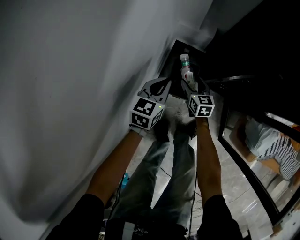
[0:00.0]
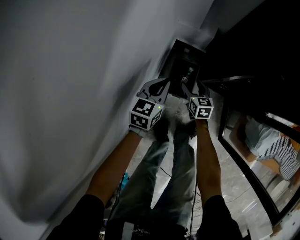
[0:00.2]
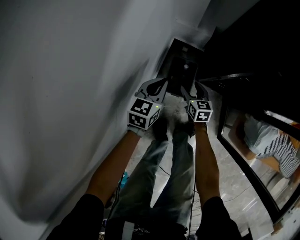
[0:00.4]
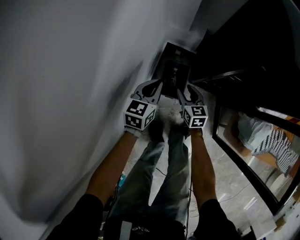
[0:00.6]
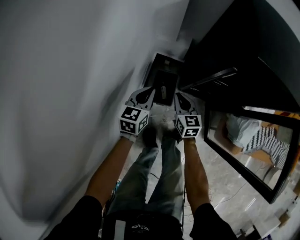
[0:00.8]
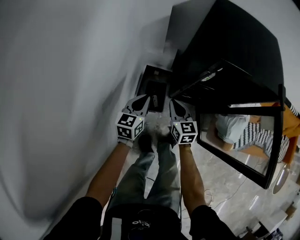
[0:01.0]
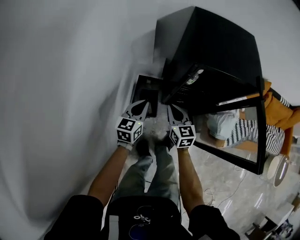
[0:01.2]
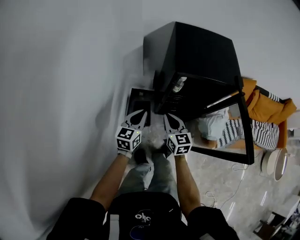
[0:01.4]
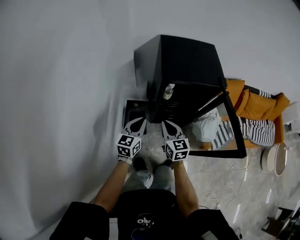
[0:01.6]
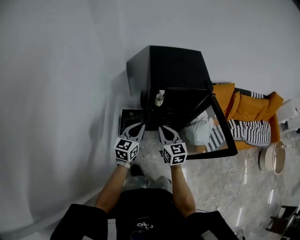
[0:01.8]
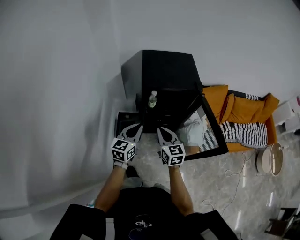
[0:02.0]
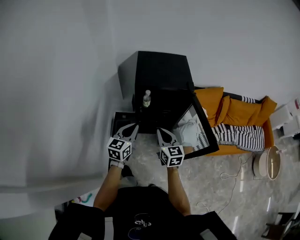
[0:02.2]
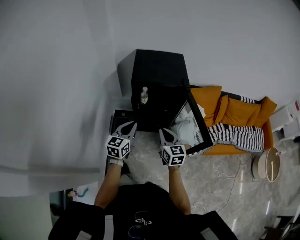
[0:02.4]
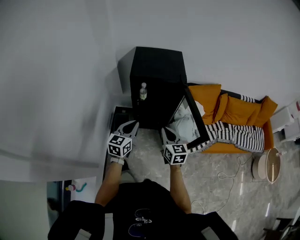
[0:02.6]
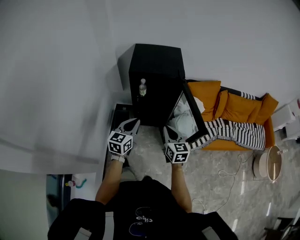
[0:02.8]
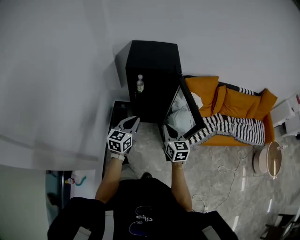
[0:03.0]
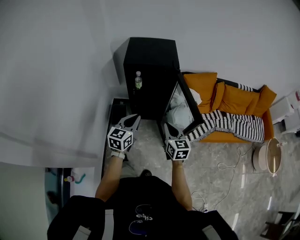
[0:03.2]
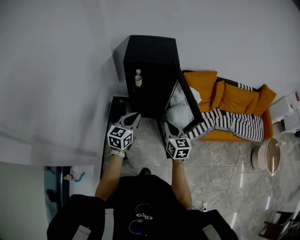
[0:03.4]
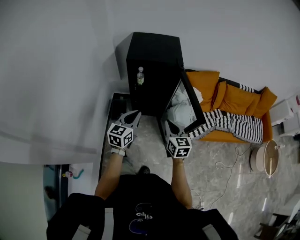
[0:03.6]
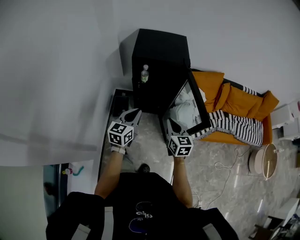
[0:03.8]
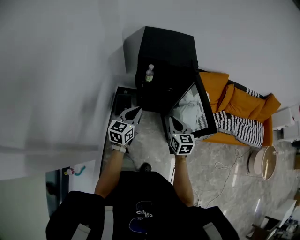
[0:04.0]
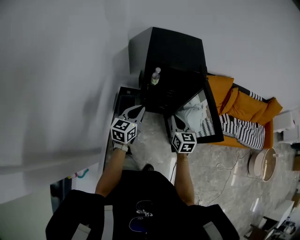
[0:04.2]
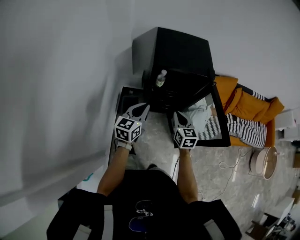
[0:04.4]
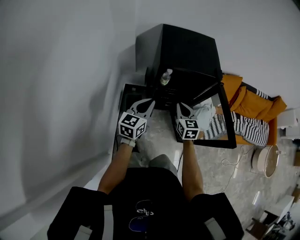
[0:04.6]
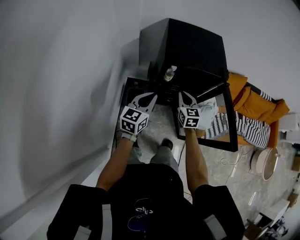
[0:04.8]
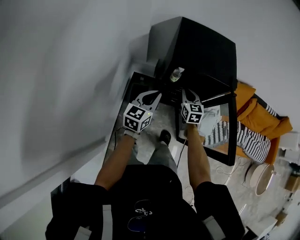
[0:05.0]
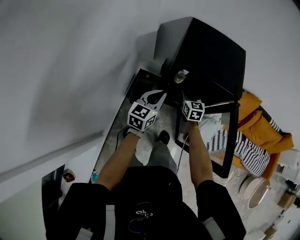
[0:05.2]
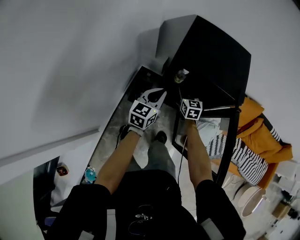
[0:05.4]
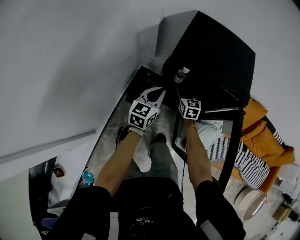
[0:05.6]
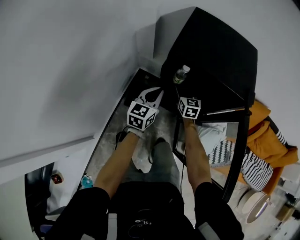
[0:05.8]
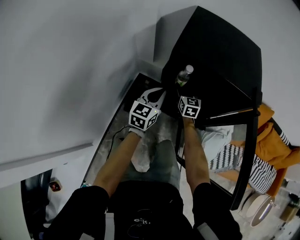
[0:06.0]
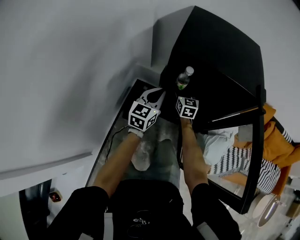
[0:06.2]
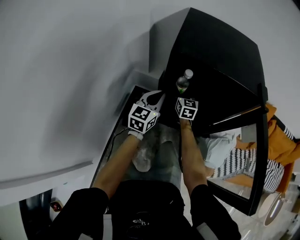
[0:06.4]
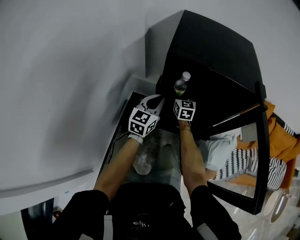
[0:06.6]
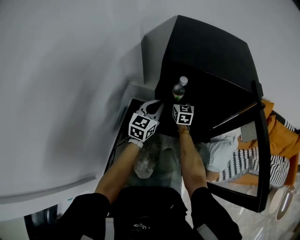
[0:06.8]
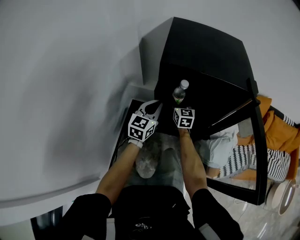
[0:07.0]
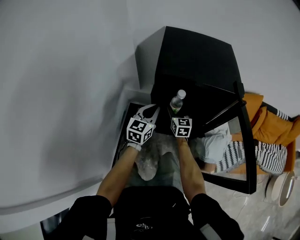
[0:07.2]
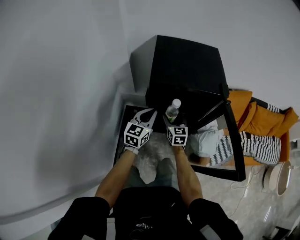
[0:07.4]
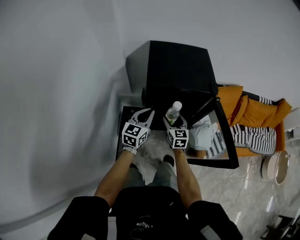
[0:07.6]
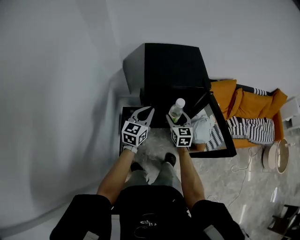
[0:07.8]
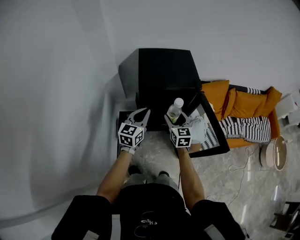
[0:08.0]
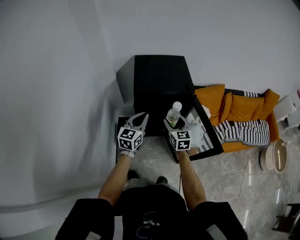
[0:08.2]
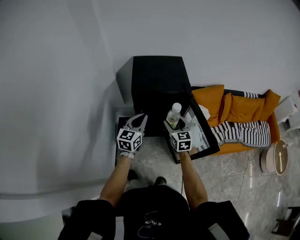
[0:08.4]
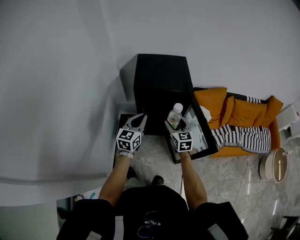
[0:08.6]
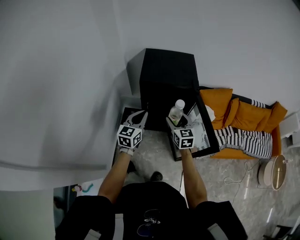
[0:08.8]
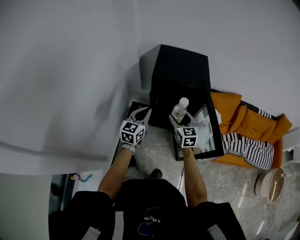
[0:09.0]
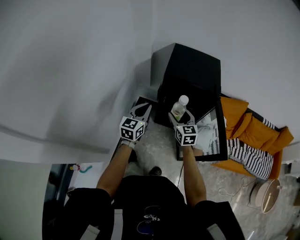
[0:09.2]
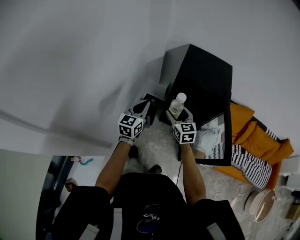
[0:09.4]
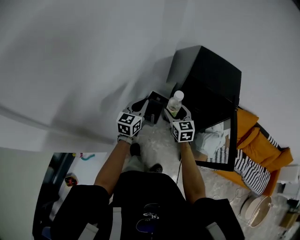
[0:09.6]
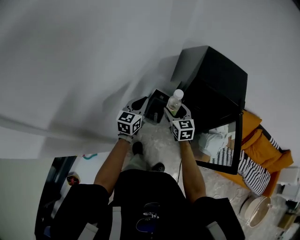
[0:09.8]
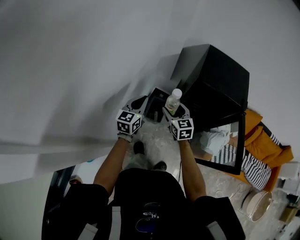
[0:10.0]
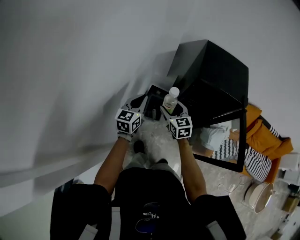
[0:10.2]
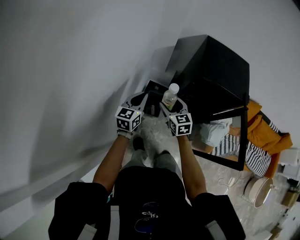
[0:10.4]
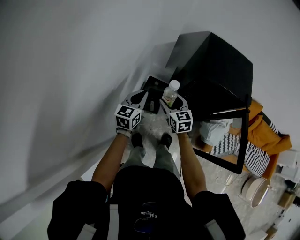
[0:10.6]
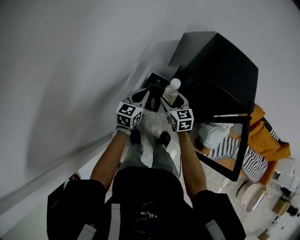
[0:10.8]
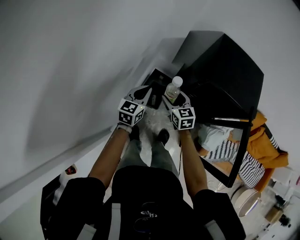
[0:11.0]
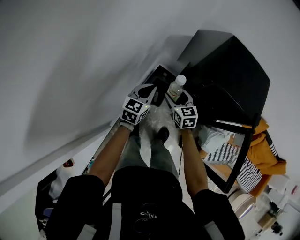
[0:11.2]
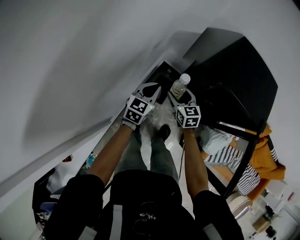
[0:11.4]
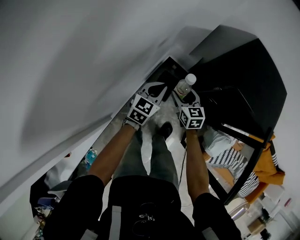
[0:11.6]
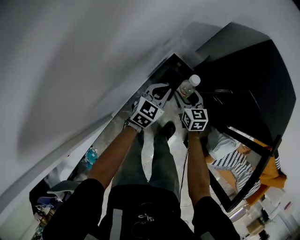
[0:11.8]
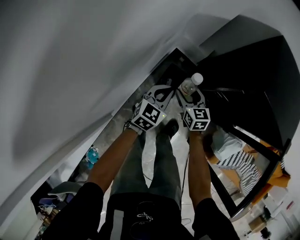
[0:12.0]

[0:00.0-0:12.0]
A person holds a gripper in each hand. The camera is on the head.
0:00.0 to 0:01.6: The right gripper is displaced upward by about 40 cm, changes its angle by roughly 20 degrees, and closes its fingers. Meanwhile the left gripper shifts about 35 cm upward and to the right.
0:01.6 to 0:03.0: The right gripper moves to the right and backward, approximately 30 cm; the left gripper moves to the right, backward and upward, approximately 30 cm.
0:03.0 to 0:04.4: The right gripper moves forward and to the left, approximately 20 cm. The left gripper goes roughly 20 cm to the left and forward.
0:04.4 to 0:06.0: The left gripper goes approximately 25 cm downward and forward. Meanwhile the right gripper shifts some 40 cm forward and downward, and opens up.
0:06.0 to 0:07.6: The right gripper moves upward and backward, approximately 20 cm; the left gripper shifts some 15 cm upward.
0:07.6 to 0:09.0: The right gripper travels upward, backward and to the right by about 20 cm. Meanwhile the left gripper goes about 15 cm backward and upward.
0:09.0 to 0:10.4: The grippers both shift to the left by approximately 25 cm.
0:10.4 to 0:12.0: The grippers both shift downward by about 25 cm.

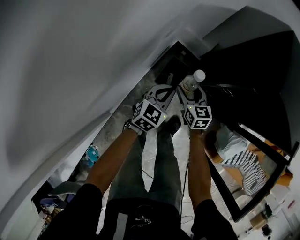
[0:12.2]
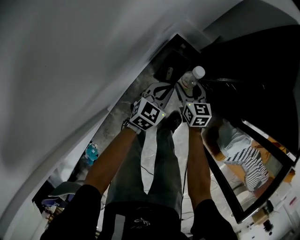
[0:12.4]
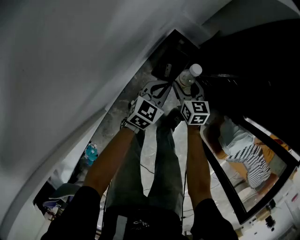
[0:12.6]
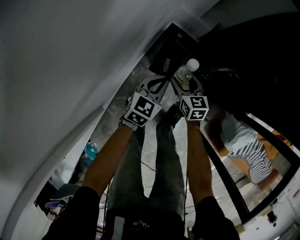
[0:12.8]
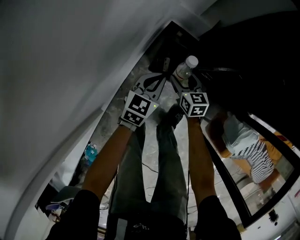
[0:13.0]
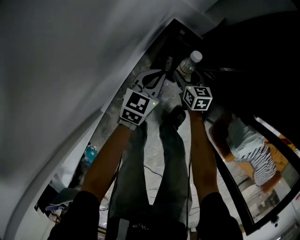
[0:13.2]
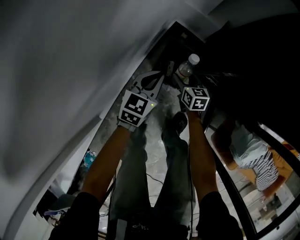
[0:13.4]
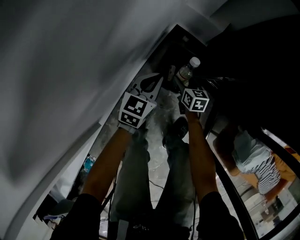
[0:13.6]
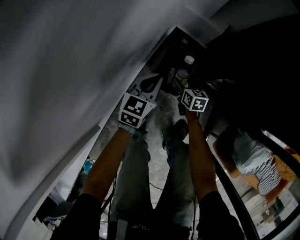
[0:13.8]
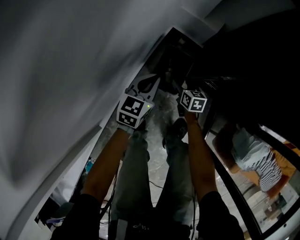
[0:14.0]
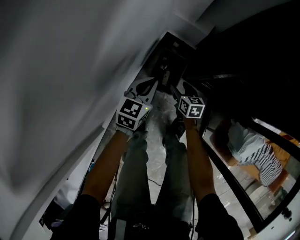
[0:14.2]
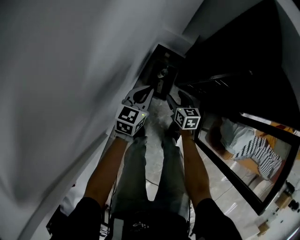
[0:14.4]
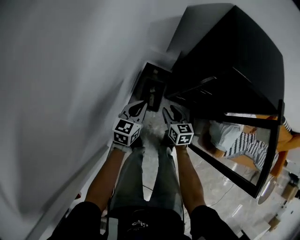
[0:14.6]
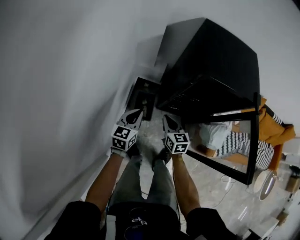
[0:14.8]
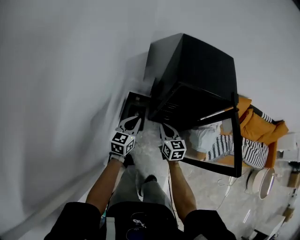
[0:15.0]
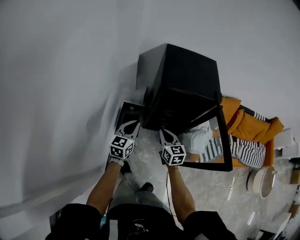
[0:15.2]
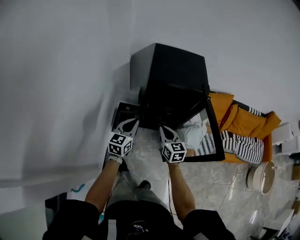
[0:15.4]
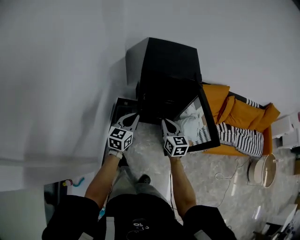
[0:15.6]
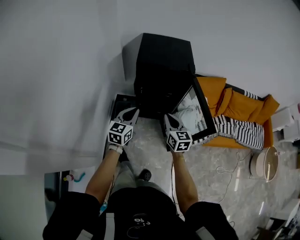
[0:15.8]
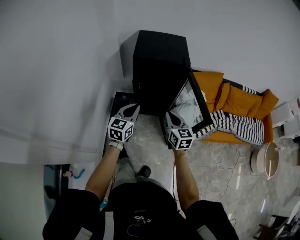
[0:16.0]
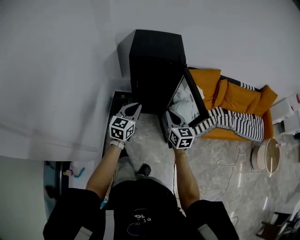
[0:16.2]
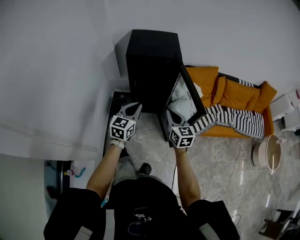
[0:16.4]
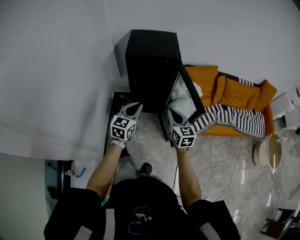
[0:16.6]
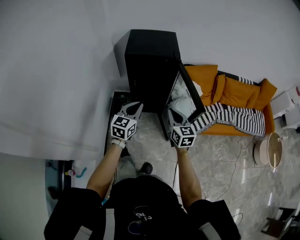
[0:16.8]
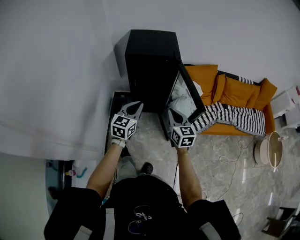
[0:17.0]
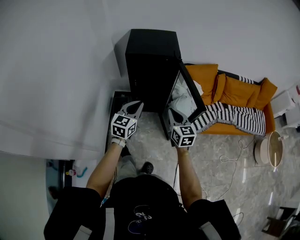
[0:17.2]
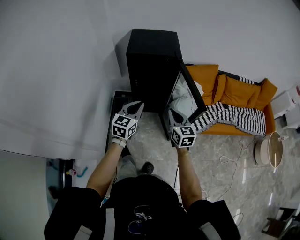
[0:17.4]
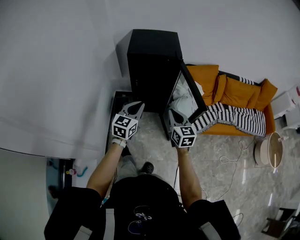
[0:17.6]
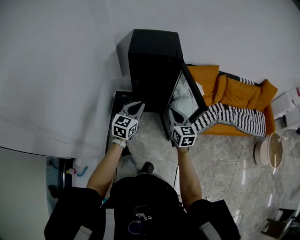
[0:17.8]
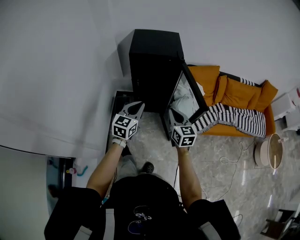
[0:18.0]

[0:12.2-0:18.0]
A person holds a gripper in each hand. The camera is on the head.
0:12.2 to 0:13.6: The right gripper shifts about 30 cm downward; the left gripper is displaced downward by about 20 cm.
0:13.6 to 0:15.0: Both grippers travel together upward, some 50 cm. The right gripper changes its angle by approximately 20 degrees, and closes up.
0:15.0 to 0:16.6: The two grippers go some 35 cm to the right, backward and upward.
0:16.6 to 0:18.0: The grippers stay close to where they were, moving slightly.

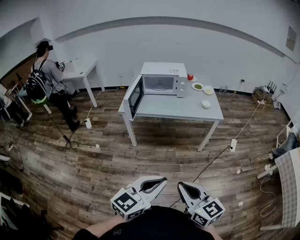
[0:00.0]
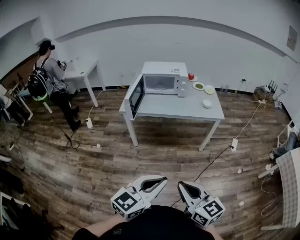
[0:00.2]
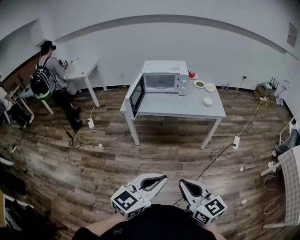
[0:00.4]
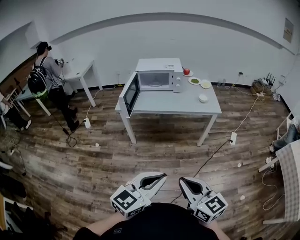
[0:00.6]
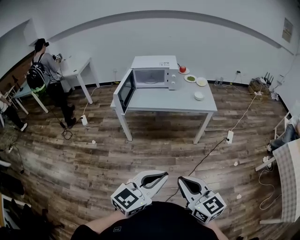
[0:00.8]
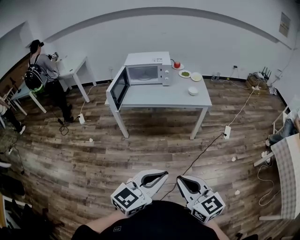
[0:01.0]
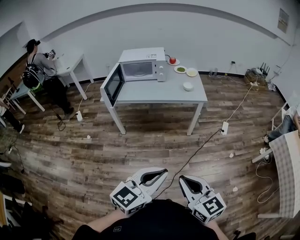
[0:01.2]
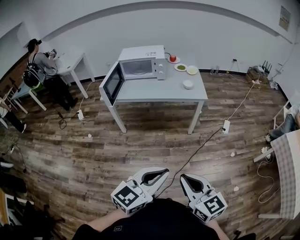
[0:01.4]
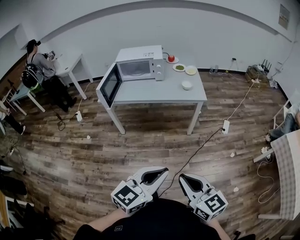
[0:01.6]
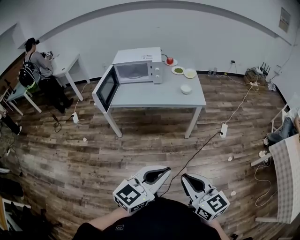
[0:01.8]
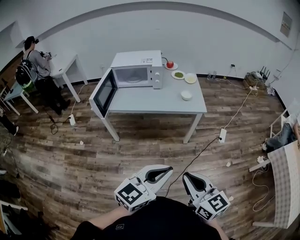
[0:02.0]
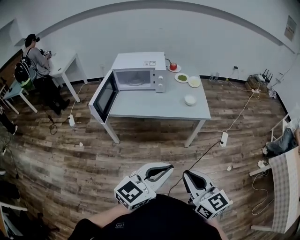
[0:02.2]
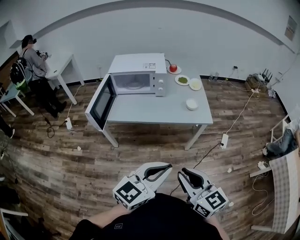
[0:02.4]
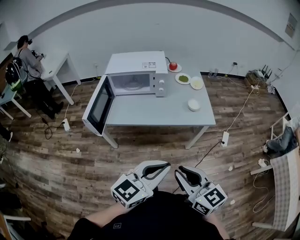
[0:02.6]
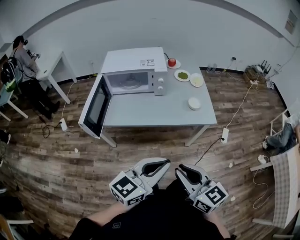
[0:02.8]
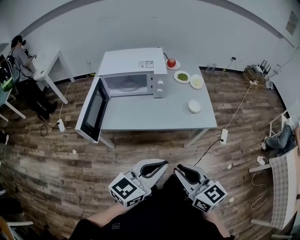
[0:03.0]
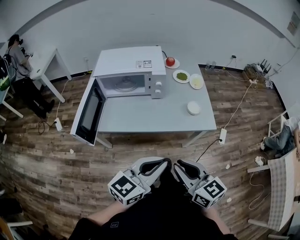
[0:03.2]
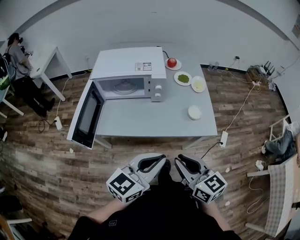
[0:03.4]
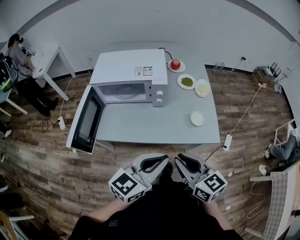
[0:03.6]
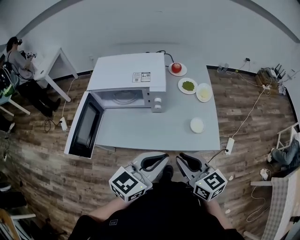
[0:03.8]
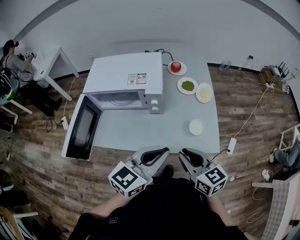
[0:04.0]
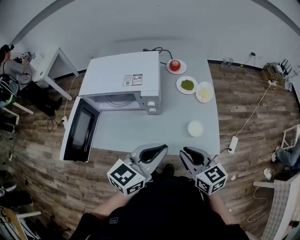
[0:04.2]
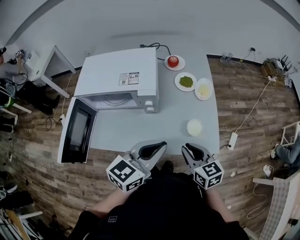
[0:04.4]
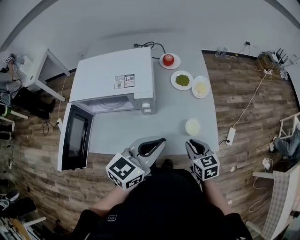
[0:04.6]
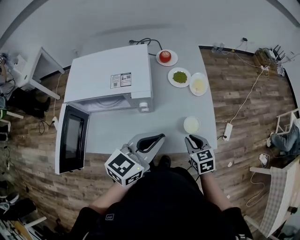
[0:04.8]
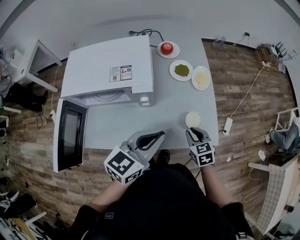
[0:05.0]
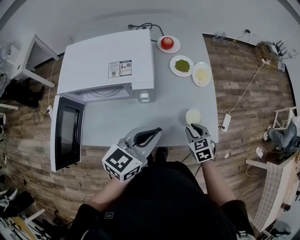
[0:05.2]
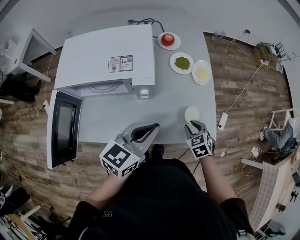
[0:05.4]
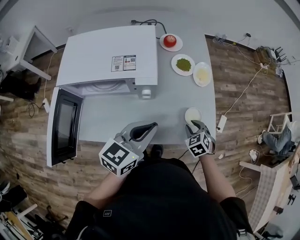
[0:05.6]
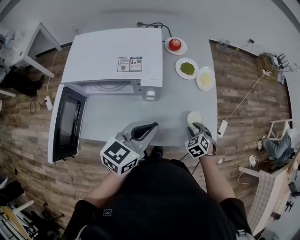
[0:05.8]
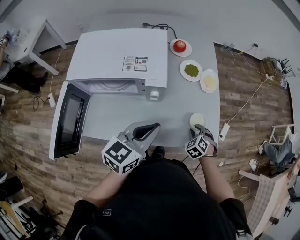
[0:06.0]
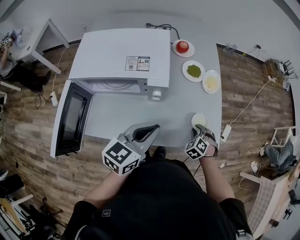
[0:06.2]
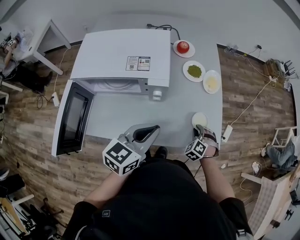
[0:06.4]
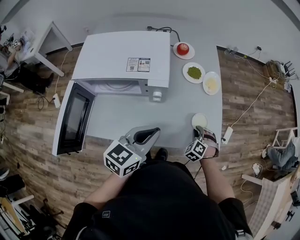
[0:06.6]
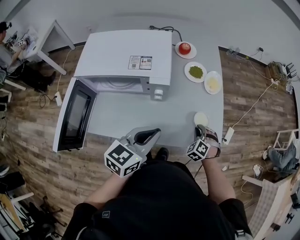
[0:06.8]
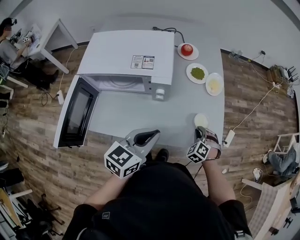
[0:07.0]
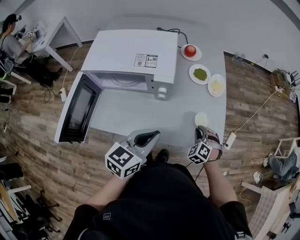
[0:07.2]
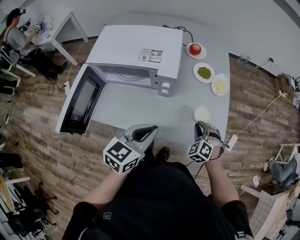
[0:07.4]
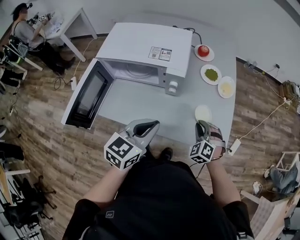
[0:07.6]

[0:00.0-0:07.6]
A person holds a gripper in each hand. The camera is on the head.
0:00.0 to 0:01.6: Both grippers travel together to the right, approximately 15 cm.
0:01.6 to 0:03.0: Both grippers move forward, about 35 cm.
0:03.0 to 0:04.6: The right gripper heads forward and downward, covering about 40 cm, and rotates some 30 degrees, while the left gripper goes some 35 cm forward.
0:04.6 to 0:06.0: The right gripper goes some 15 cm downward and forward, and rotates roughly 50 degrees. The left gripper shifts about 5 cm to the left.
0:06.0 to 0:07.6: The right gripper shifts approximately 10 cm upward and to the left, and rotates approximately 30 degrees. The left gripper shifts roughly 5 cm backward.
